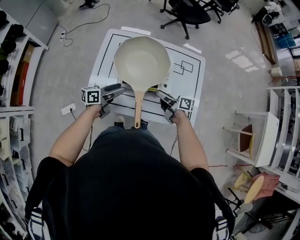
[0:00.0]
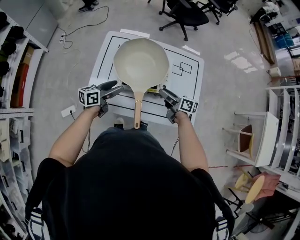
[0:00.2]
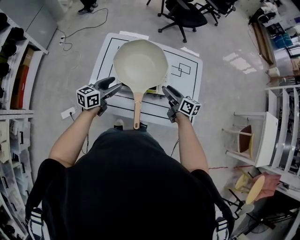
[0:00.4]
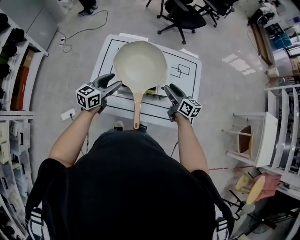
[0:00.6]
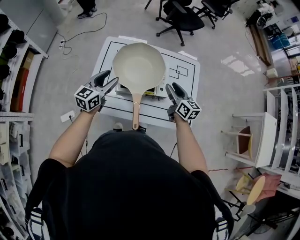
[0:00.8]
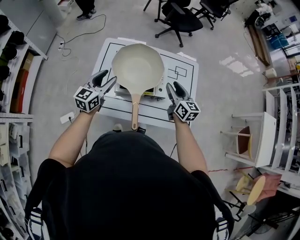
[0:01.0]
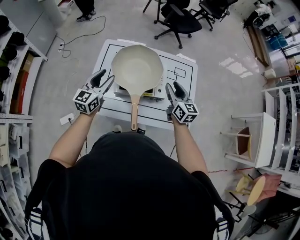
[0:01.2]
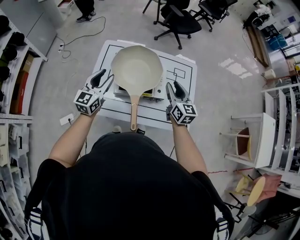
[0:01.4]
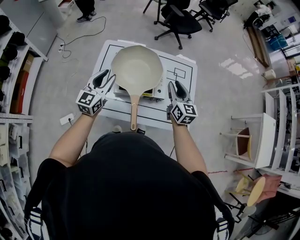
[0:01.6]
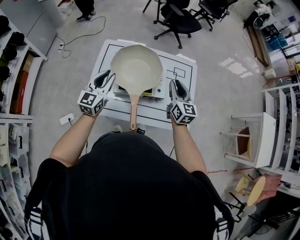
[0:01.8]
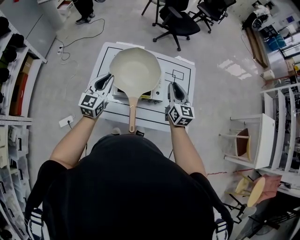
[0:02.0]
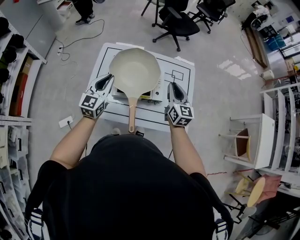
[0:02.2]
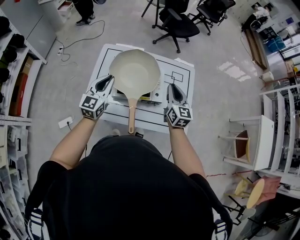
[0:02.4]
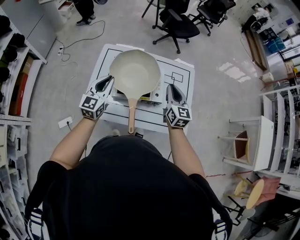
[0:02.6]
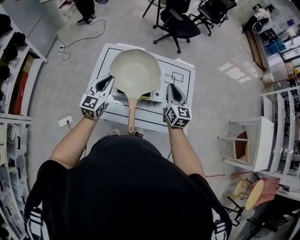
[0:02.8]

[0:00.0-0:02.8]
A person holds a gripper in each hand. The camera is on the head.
0:00.0 to 0:01.4: The left gripper shifts about 15 cm upward, twists approximately 50 degrees clockwise, seen from behind, and closes its fingers.
0:01.4 to 0:02.8: The left gripper closes.

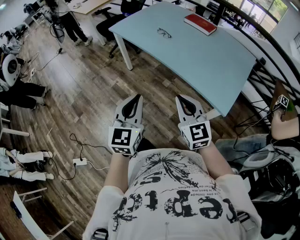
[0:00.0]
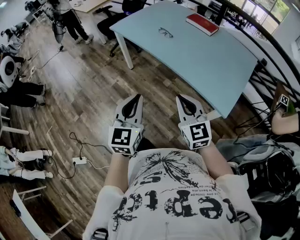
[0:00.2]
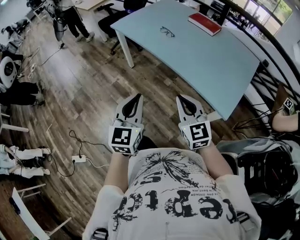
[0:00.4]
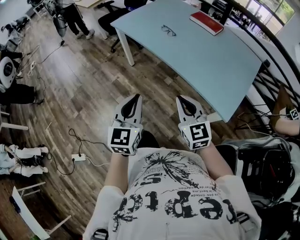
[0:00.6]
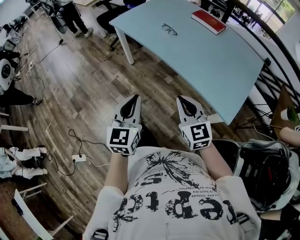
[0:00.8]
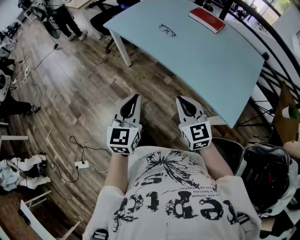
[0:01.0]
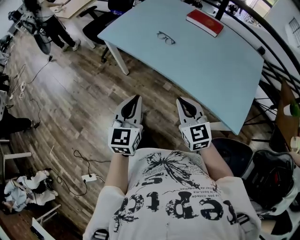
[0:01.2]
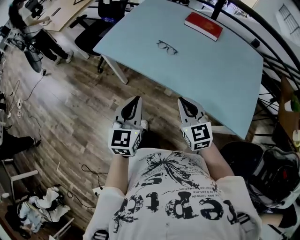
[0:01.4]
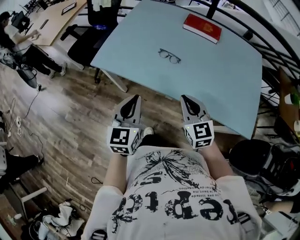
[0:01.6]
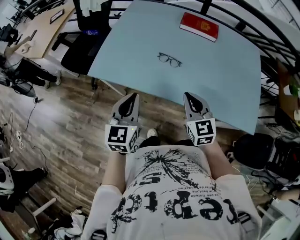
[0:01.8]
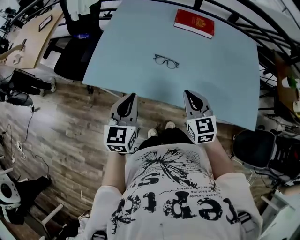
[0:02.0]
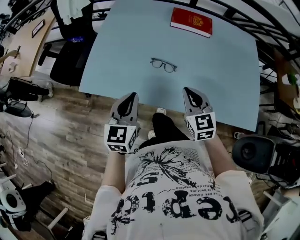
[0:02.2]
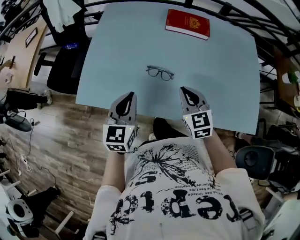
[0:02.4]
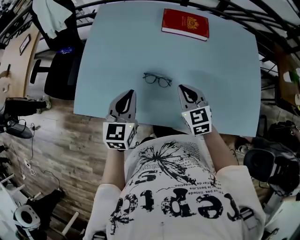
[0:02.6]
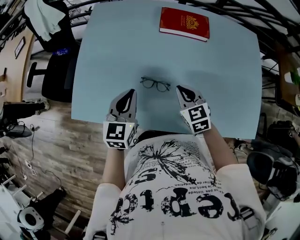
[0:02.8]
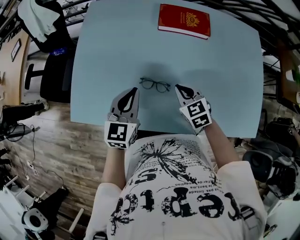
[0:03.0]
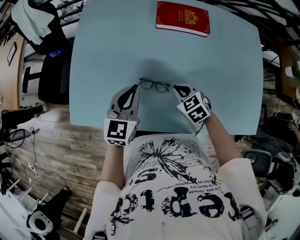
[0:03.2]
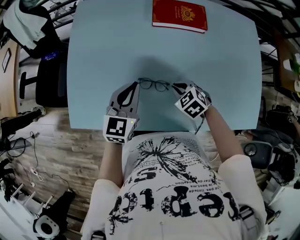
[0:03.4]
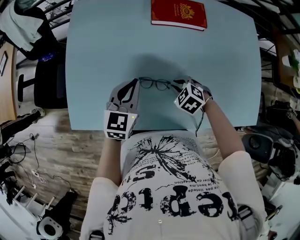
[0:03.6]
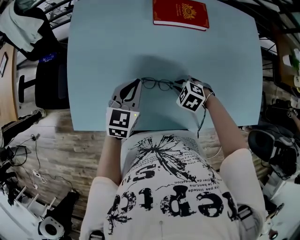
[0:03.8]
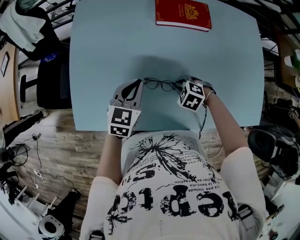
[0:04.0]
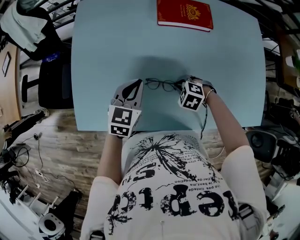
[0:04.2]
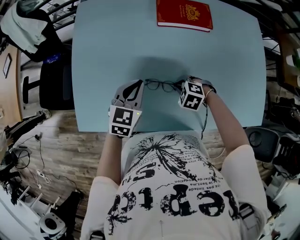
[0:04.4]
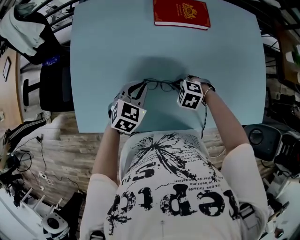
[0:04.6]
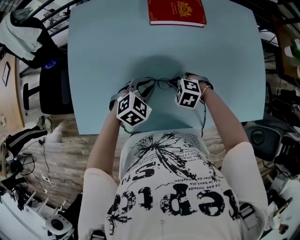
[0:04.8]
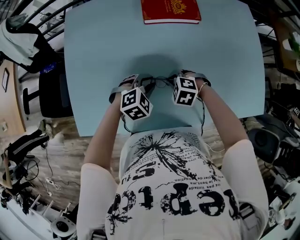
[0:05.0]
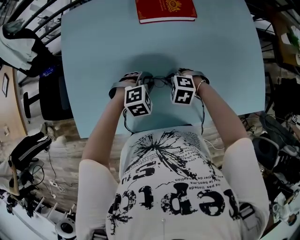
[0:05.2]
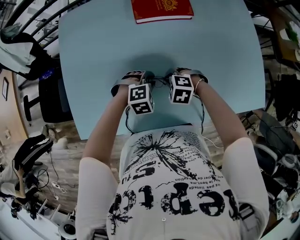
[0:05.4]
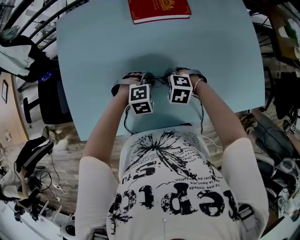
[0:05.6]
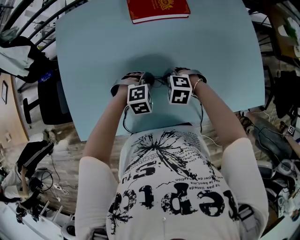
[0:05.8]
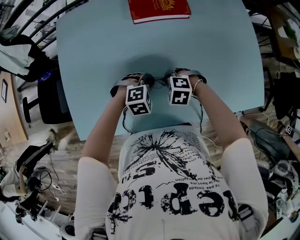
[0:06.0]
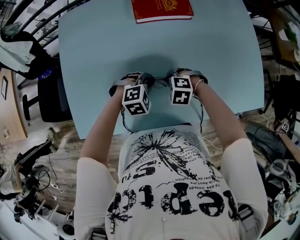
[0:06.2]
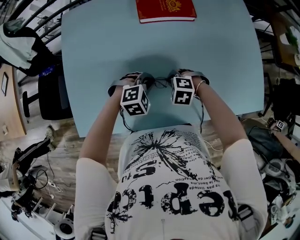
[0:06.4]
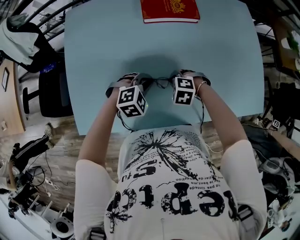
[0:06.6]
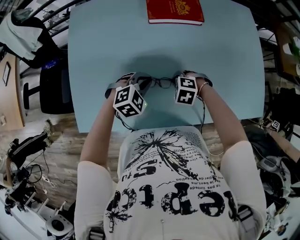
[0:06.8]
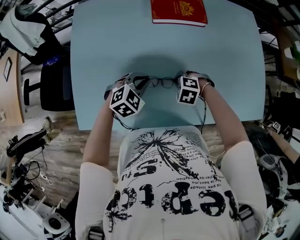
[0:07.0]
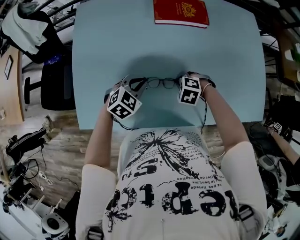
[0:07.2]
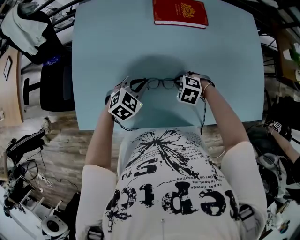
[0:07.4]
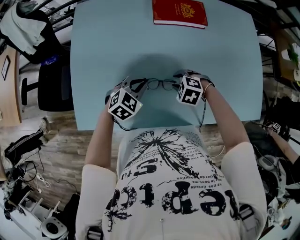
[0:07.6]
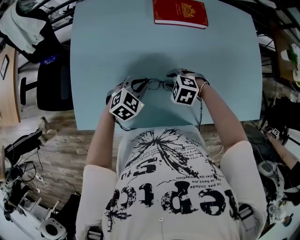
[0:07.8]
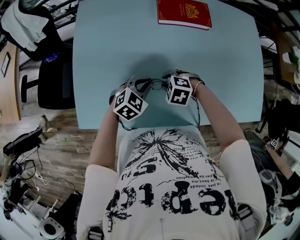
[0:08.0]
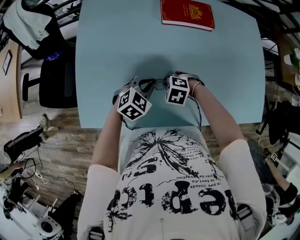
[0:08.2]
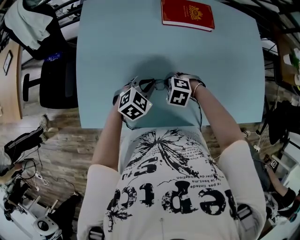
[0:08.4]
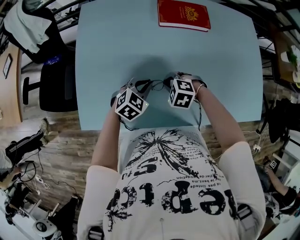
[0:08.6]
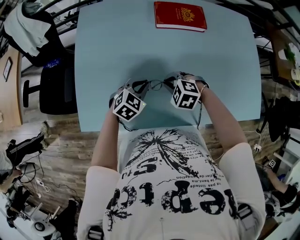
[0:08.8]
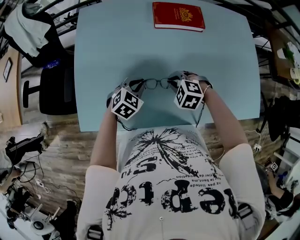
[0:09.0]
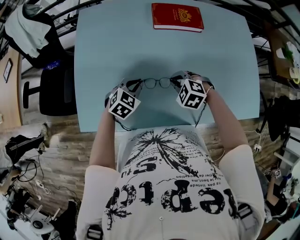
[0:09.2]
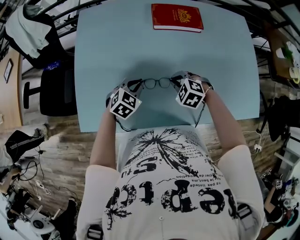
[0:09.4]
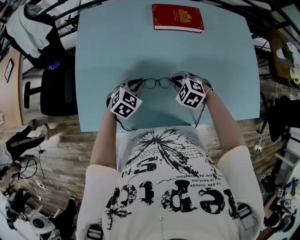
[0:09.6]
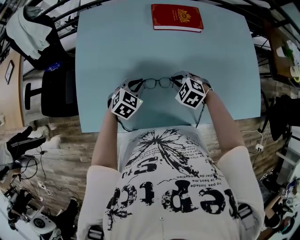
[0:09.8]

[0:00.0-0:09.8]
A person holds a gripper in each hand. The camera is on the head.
0:00.0 to 0:01.4: The two grippers go some 30 cm forward.
0:01.4 to 0:02.8: The two grippers go about 35 cm forward. The left gripper swivels roughly 30 degrees. The right gripper changes its angle by some 30 degrees.
0:02.8 to 0:04.2: The left gripper moves some 10 cm, and rotates roughly 20 degrees. The right gripper heads downward, covering about 10 cm, and tips its fingers downward by about 40 degrees.
0:04.2 to 0:05.6: The left gripper travels downward by some 10 cm, and twists about 60 degrees clockwise, seen from behind.
0:05.6 to 0:07.0: The left gripper changes place by about 10 cm, and turns by about 30 degrees.
0:07.0 to 0:08.4: The right gripper shifts by some 10 cm, and opens and closes again.
0:08.4 to 0:09.8: The right gripper ends up roughly 5 cm from where it was.

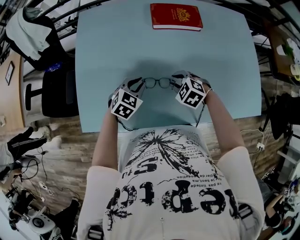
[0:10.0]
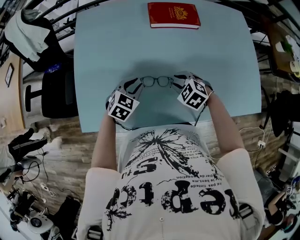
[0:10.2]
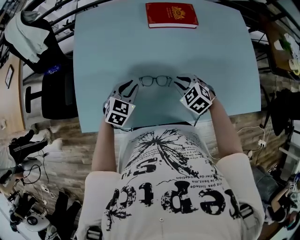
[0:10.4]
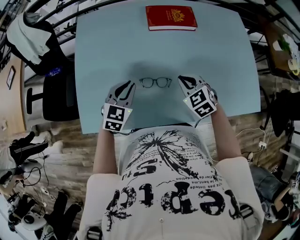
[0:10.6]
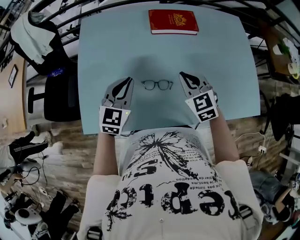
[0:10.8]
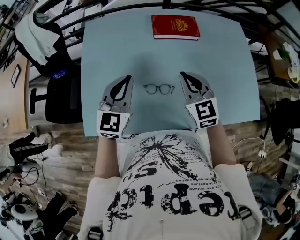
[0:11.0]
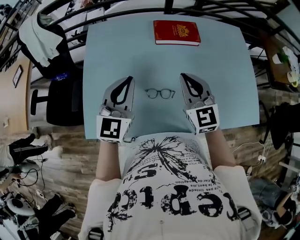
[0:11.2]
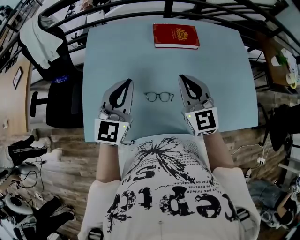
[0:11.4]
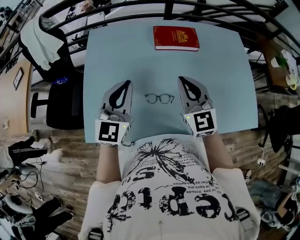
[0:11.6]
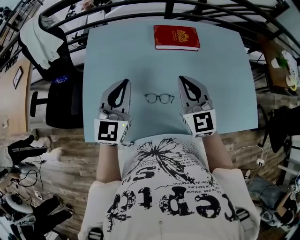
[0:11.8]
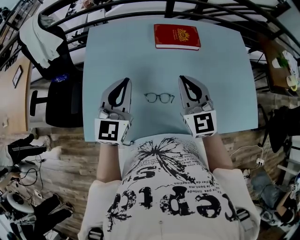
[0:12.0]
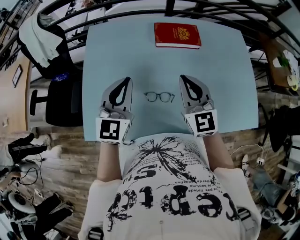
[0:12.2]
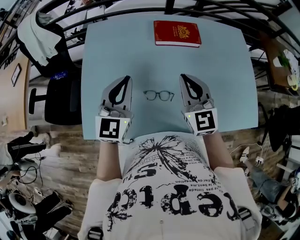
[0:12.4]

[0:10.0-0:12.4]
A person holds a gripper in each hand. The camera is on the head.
0:10.0 to 0:11.2: Both grippers move upward, some 25 cm. The right gripper tilts its fingers about 50 degrees upward, and closes its fingers; the left gripper points its fingers roughly 40 degrees further upward.
0:11.2 to 0:12.4: The grippers make only small movements.

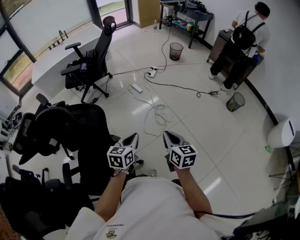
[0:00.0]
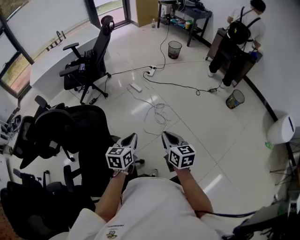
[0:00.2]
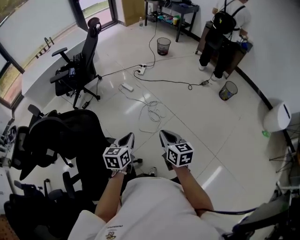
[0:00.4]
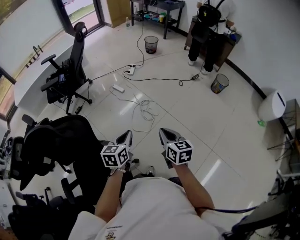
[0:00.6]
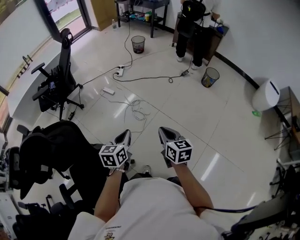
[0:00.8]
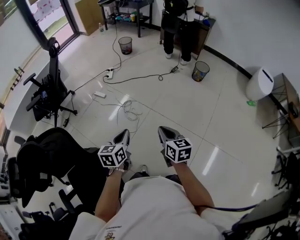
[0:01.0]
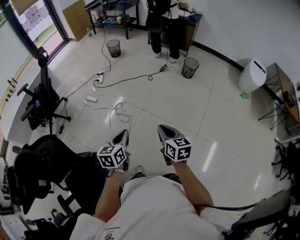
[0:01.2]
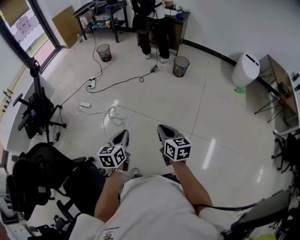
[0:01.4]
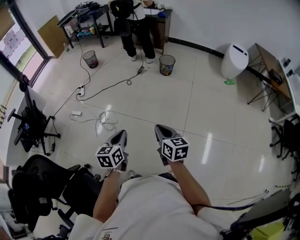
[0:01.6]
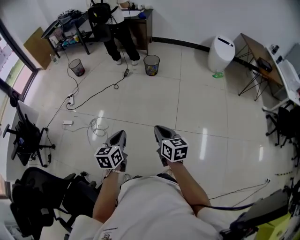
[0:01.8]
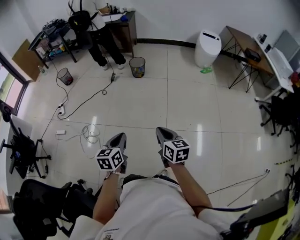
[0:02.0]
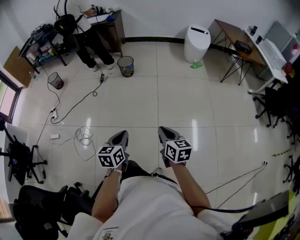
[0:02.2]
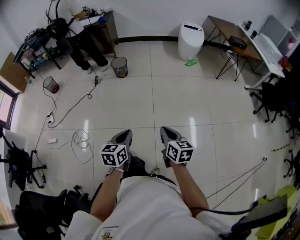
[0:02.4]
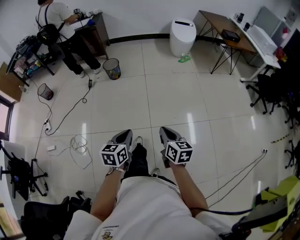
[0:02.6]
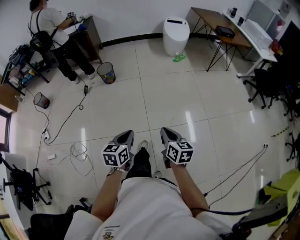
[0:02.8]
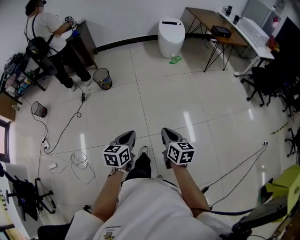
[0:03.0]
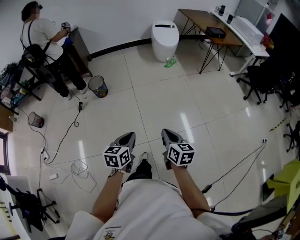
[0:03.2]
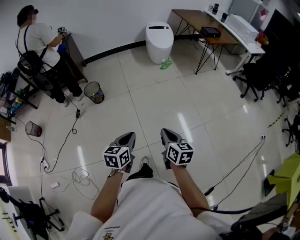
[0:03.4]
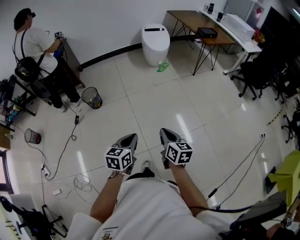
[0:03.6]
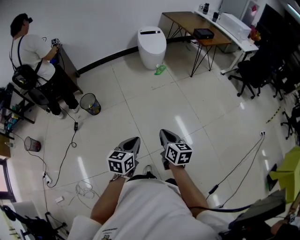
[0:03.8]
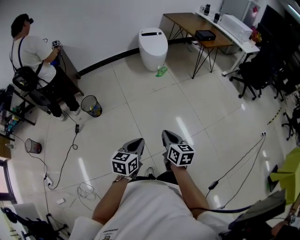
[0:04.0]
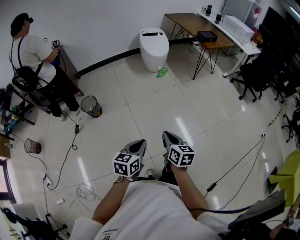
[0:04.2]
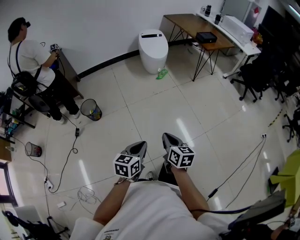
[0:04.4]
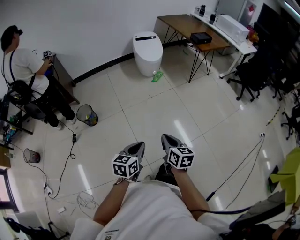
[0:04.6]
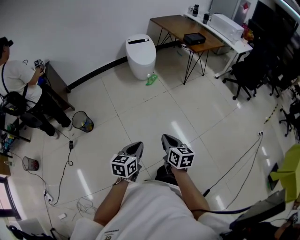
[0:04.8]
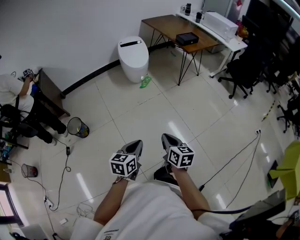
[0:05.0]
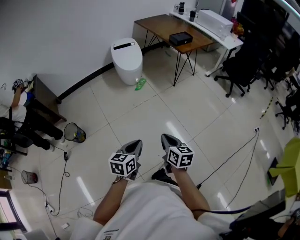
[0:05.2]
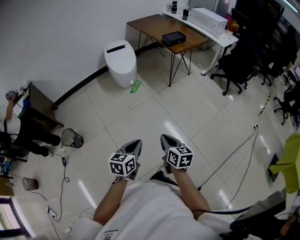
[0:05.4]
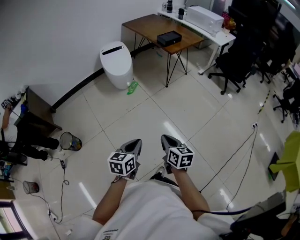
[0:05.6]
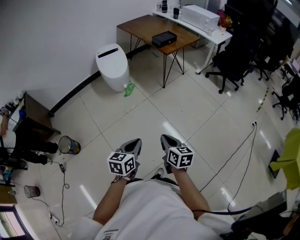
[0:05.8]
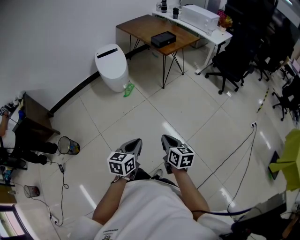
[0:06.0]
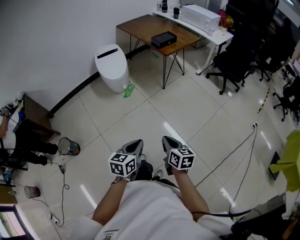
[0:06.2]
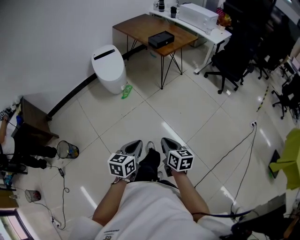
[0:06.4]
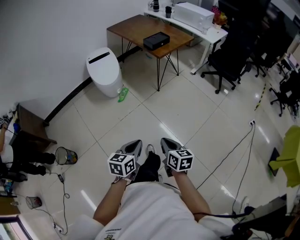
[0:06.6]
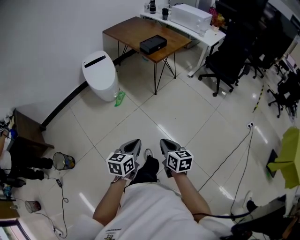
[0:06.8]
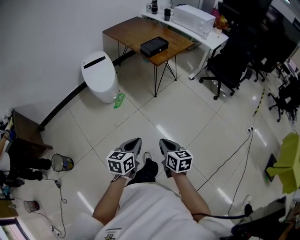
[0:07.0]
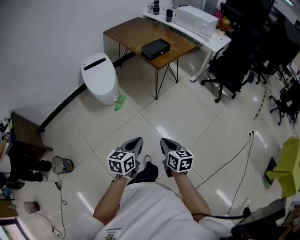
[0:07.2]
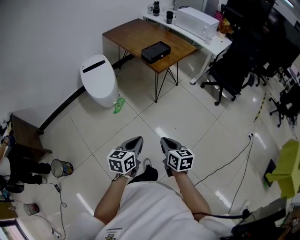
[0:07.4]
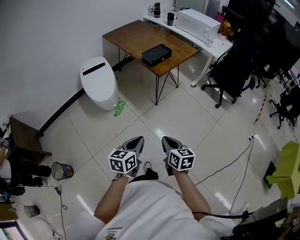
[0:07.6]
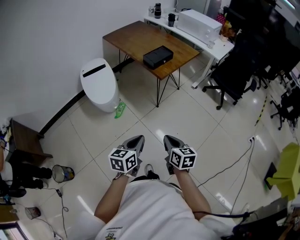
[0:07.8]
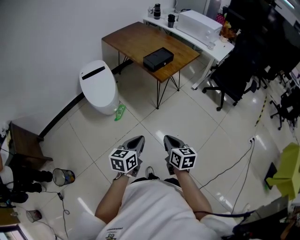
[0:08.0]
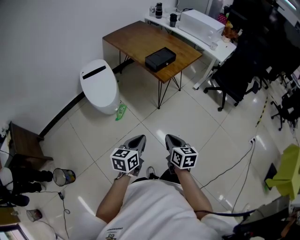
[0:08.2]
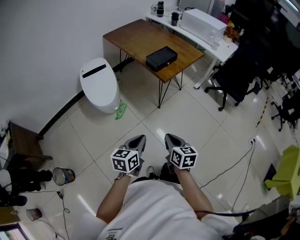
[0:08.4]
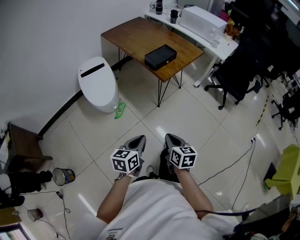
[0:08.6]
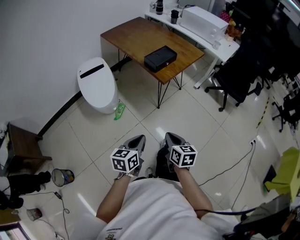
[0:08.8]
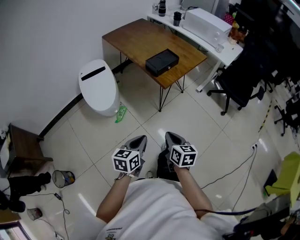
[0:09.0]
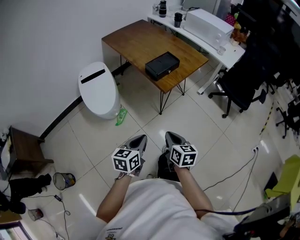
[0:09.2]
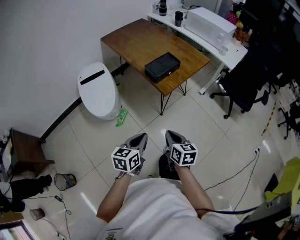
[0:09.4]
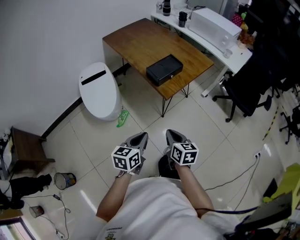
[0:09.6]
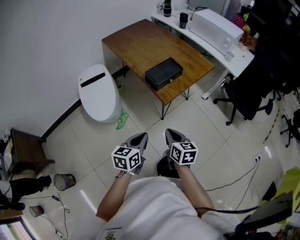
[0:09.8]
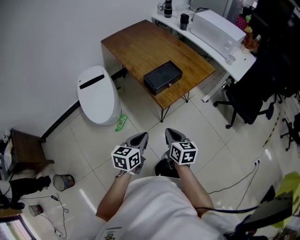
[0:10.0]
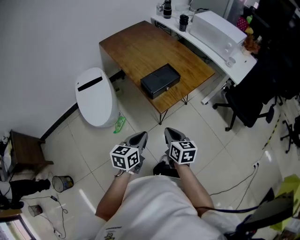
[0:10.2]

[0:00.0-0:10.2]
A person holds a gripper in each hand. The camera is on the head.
0:00.0 to 0:01.4: The right gripper ends up approximately 30 cm from where it was, and changes its angle by some 30 degrees. The left gripper shifts by about 30 cm, and swivels approximately 20 degrees.
0:01.4 to 0:03.0: The two grippers travel together, approximately 50 cm. The right gripper changes its angle by roughly 40 degrees. The left gripper changes its angle by approximately 40 degrees.
0:03.0 to 0:04.4: Both grippers travel together forward, roughly 20 cm.
0:04.4 to 0:05.8: The right gripper goes approximately 30 cm to the right and forward. Meanwhile the left gripper goes approximately 35 cm forward and to the right.
0:05.8 to 0:07.2: The two grippers go some 25 cm forward.
0:07.2 to 0:08.8: The grippers both shift forward by some 20 cm.
0:08.8 to 0:10.2: The grippers both shift forward by about 25 cm.
